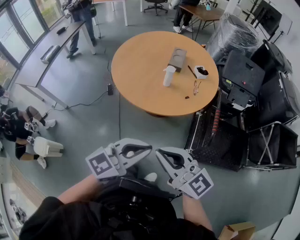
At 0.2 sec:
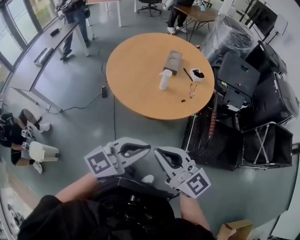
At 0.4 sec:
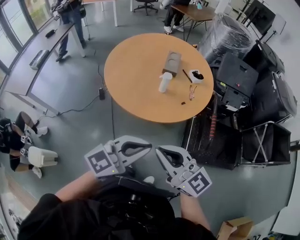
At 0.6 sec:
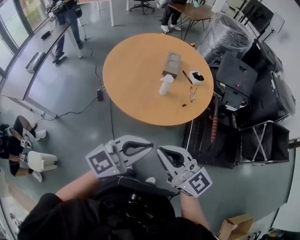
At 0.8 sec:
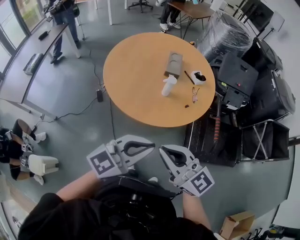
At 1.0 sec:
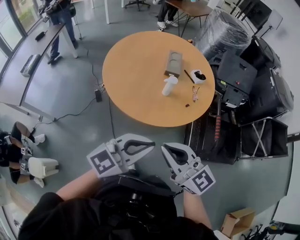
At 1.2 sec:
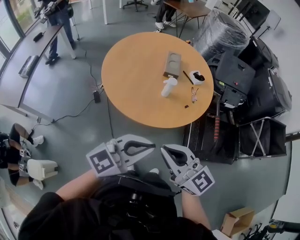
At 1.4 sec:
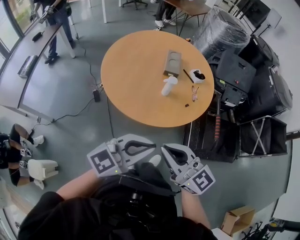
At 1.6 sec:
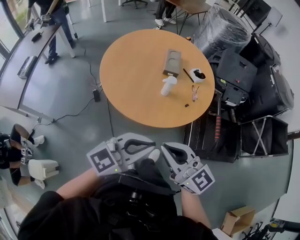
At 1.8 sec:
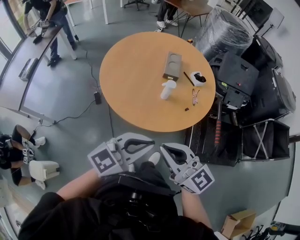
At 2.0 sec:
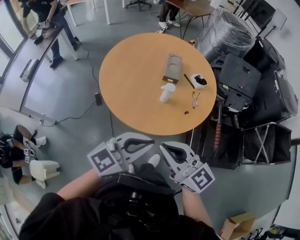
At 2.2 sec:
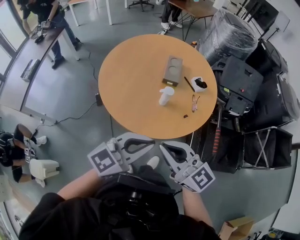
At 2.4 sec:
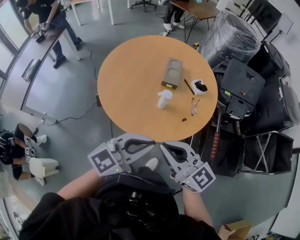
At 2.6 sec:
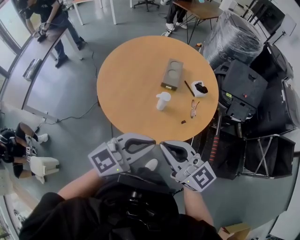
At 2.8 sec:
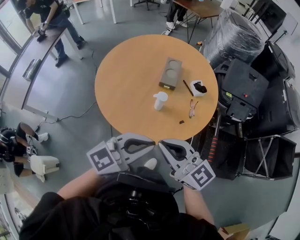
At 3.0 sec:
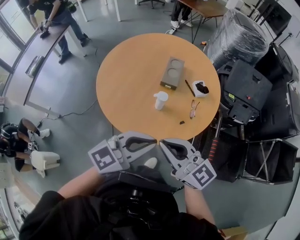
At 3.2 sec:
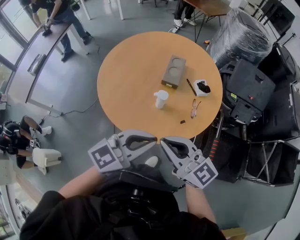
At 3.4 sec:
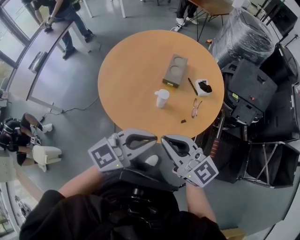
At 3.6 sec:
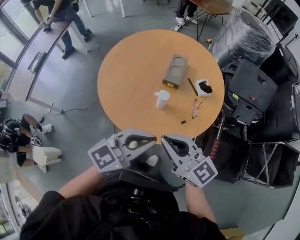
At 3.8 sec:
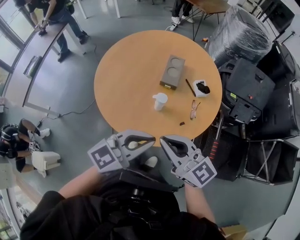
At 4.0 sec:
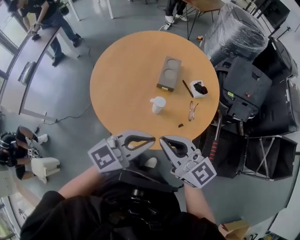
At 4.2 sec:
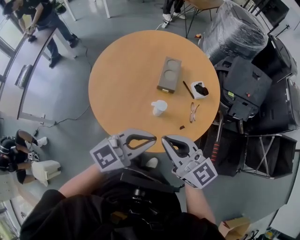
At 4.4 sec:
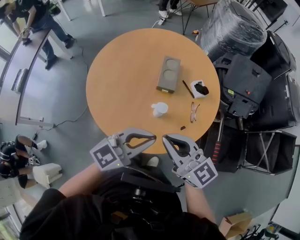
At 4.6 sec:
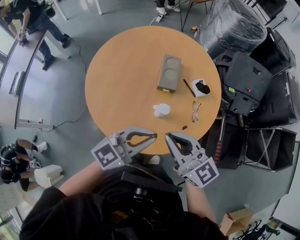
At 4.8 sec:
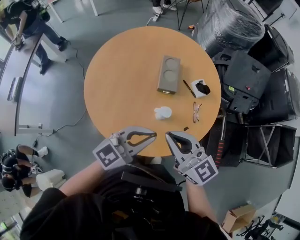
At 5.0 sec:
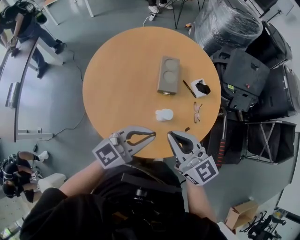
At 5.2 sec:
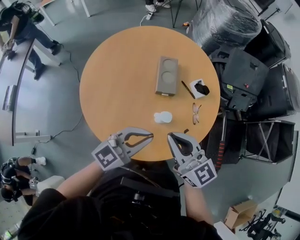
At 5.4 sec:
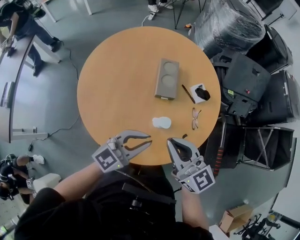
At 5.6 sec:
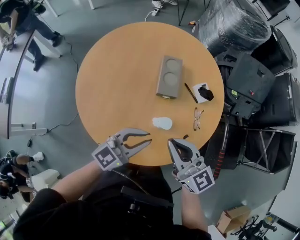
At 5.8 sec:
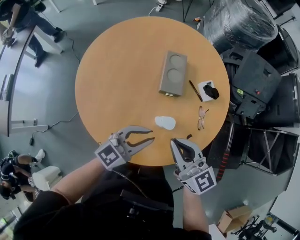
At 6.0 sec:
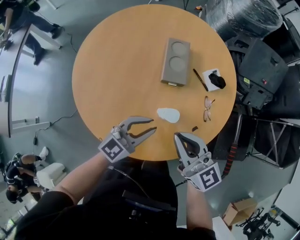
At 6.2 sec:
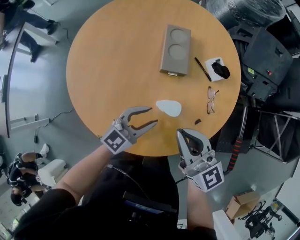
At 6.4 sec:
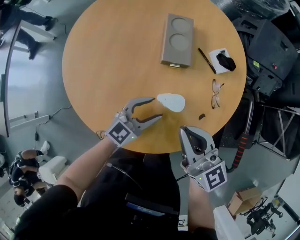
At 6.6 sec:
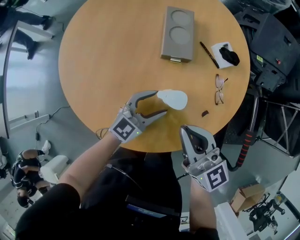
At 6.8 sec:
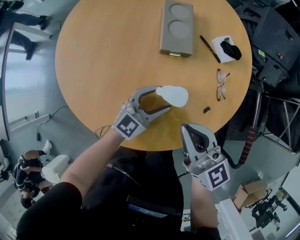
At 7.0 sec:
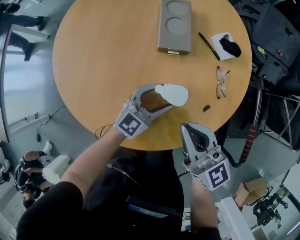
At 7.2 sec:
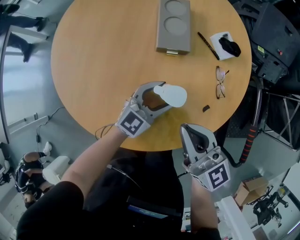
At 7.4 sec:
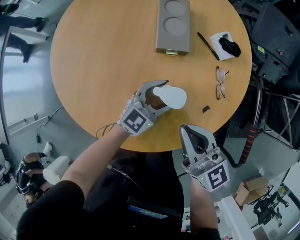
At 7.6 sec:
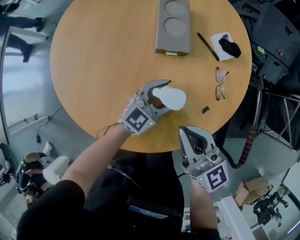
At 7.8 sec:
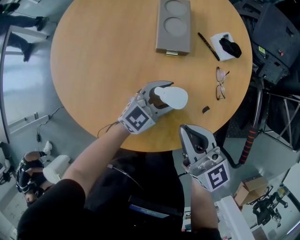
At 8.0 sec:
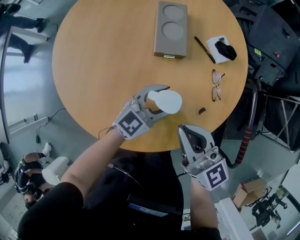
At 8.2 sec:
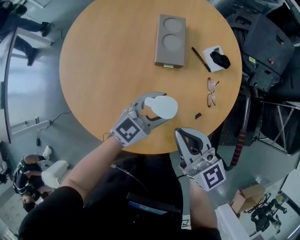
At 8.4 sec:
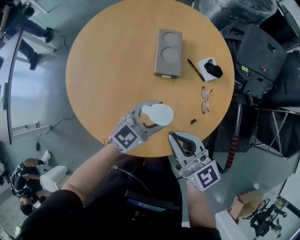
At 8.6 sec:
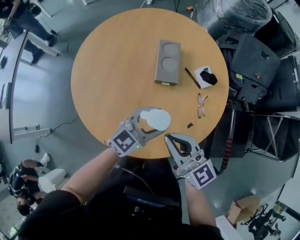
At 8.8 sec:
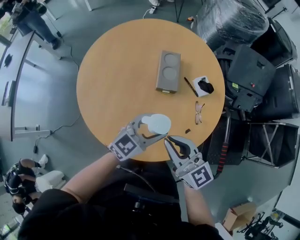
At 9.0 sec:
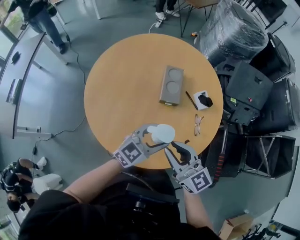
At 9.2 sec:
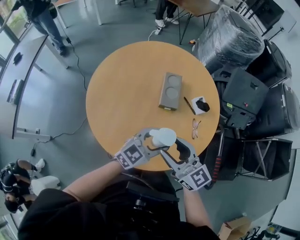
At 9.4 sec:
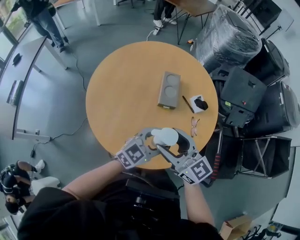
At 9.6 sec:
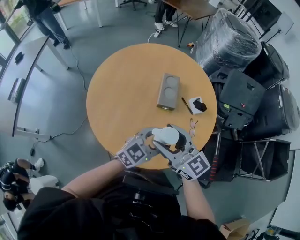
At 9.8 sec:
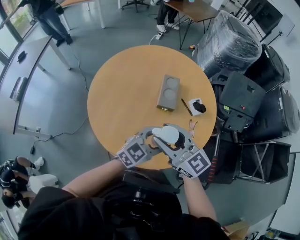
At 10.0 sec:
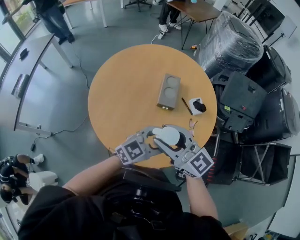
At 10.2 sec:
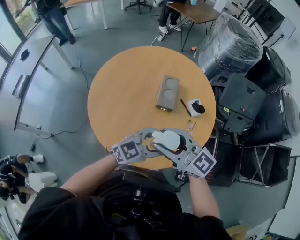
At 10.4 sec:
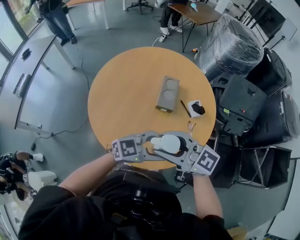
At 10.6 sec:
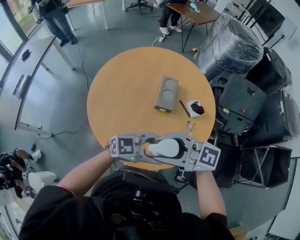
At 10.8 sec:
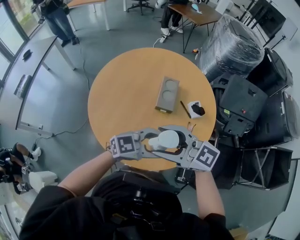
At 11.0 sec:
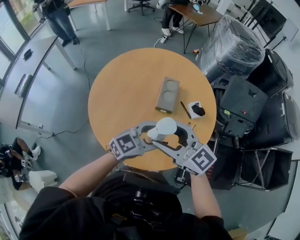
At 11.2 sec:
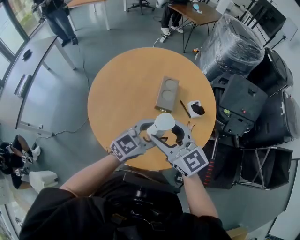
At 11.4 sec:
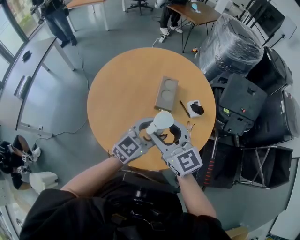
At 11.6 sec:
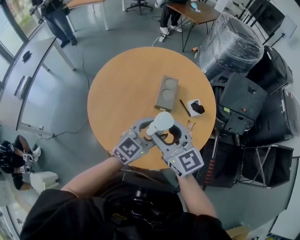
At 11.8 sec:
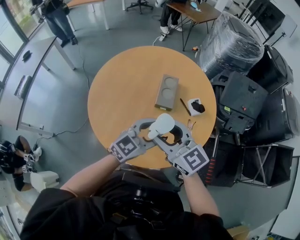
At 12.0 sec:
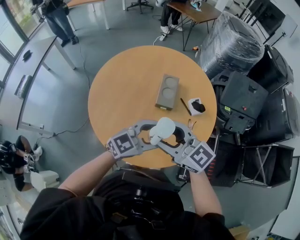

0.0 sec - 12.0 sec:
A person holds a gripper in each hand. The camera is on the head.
0.0 sec - 1.6 sec: Both grippers travel together forward and to the left, roughly 25 cm.
1.6 sec - 3.0 sec: Both grippers move forward and to the right, roughly 25 cm.
3.0 sec - 4.4 sec: Both grippers move forward, about 15 cm.
4.4 sec - 6.0 sec: Both grippers travel together downward and forward, approximately 25 cm.
6.0 sec - 7.6 sec: The left gripper is displaced downward and to the right by about 20 cm, and opens, while the right gripper shifts about 15 cm downward.
7.6 sec - 9.0 sec: Both grippers travel together upward, roughly 25 cm.
9.0 sec - 10.4 sec: The right gripper heads upward, covering roughly 10 cm, swivels approximately 30 degrees, and opens and closes again. Meanwhile the left gripper moves roughly 15 cm, and rotates some 20 degrees.

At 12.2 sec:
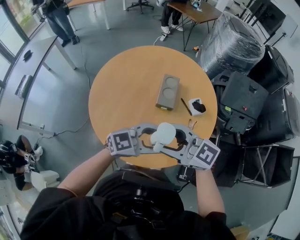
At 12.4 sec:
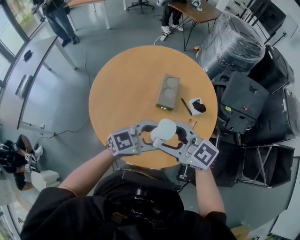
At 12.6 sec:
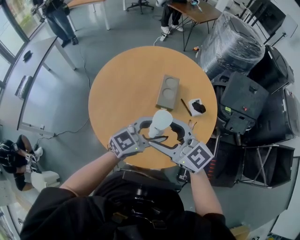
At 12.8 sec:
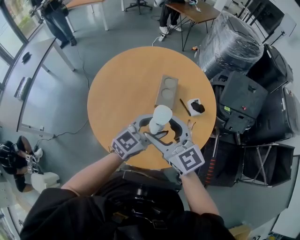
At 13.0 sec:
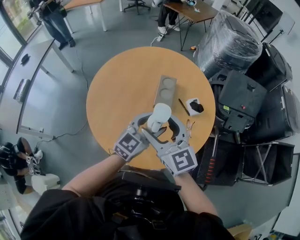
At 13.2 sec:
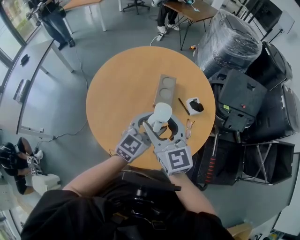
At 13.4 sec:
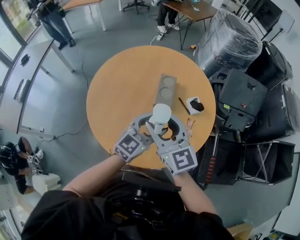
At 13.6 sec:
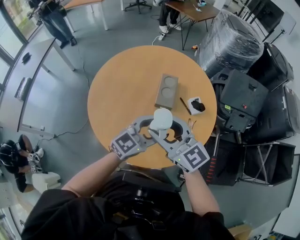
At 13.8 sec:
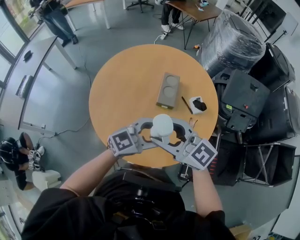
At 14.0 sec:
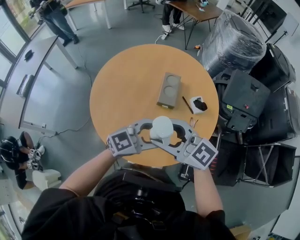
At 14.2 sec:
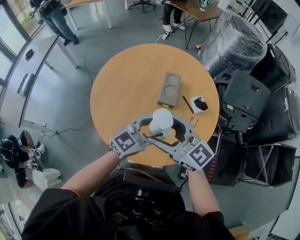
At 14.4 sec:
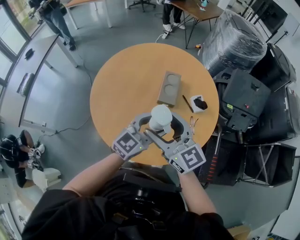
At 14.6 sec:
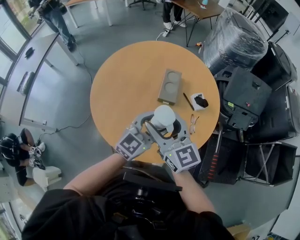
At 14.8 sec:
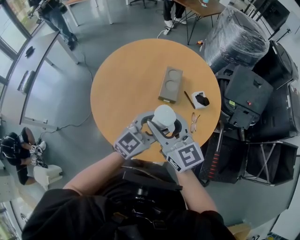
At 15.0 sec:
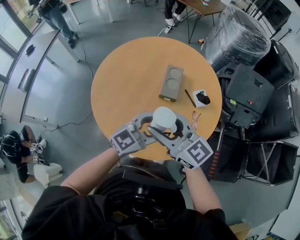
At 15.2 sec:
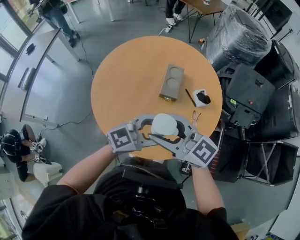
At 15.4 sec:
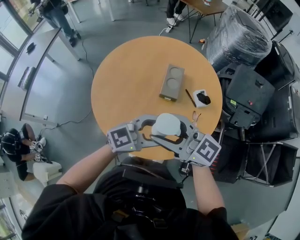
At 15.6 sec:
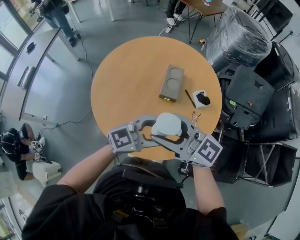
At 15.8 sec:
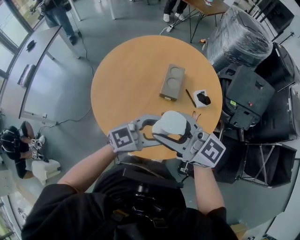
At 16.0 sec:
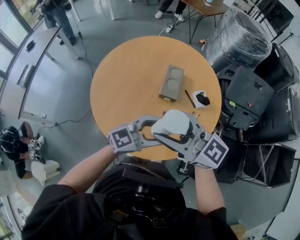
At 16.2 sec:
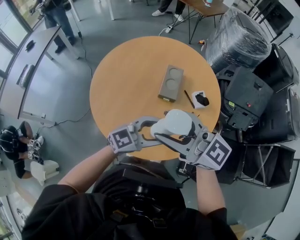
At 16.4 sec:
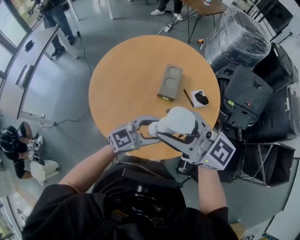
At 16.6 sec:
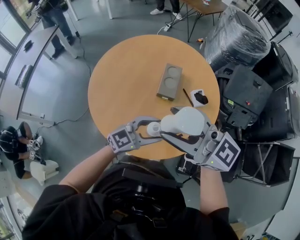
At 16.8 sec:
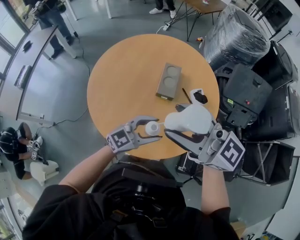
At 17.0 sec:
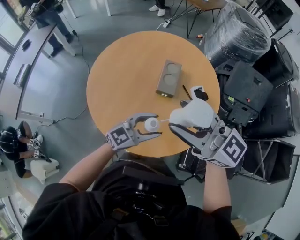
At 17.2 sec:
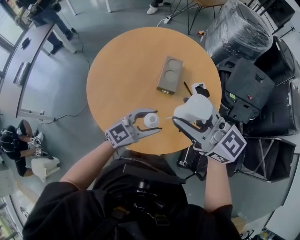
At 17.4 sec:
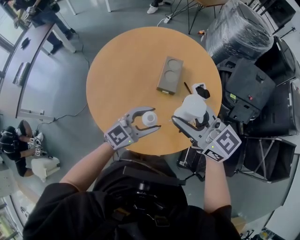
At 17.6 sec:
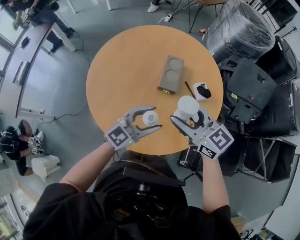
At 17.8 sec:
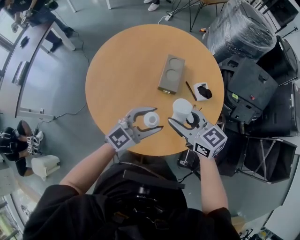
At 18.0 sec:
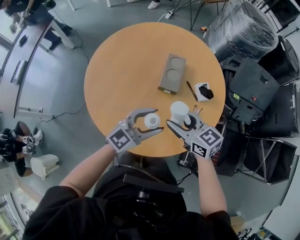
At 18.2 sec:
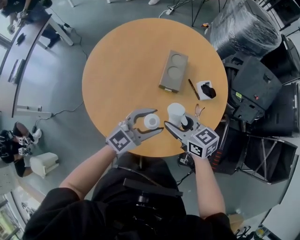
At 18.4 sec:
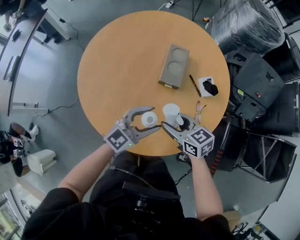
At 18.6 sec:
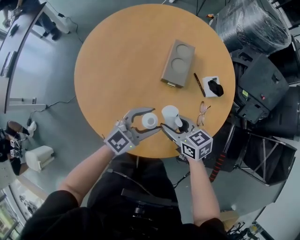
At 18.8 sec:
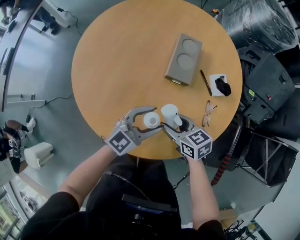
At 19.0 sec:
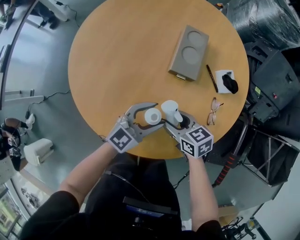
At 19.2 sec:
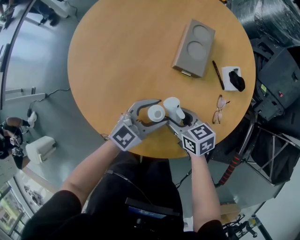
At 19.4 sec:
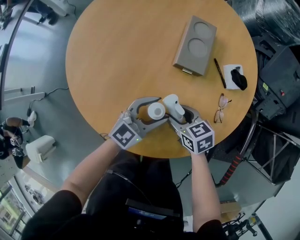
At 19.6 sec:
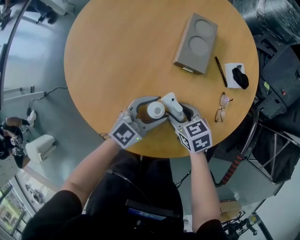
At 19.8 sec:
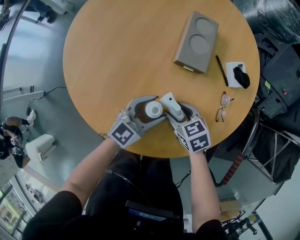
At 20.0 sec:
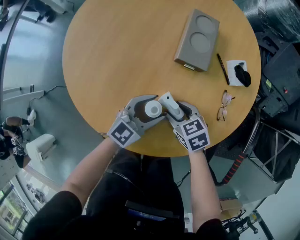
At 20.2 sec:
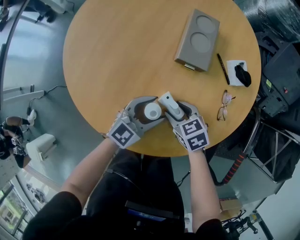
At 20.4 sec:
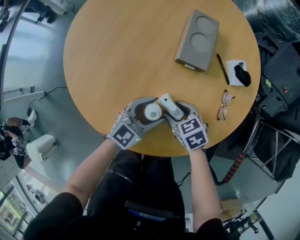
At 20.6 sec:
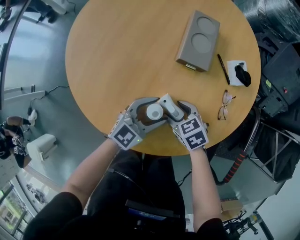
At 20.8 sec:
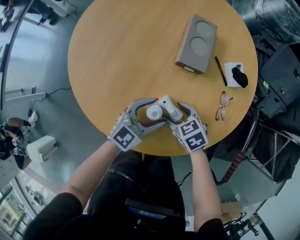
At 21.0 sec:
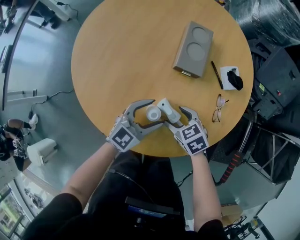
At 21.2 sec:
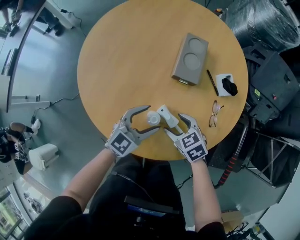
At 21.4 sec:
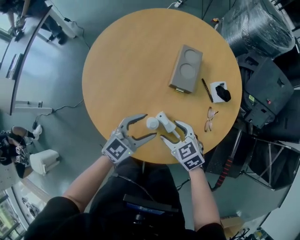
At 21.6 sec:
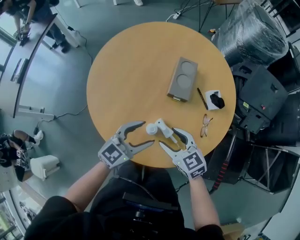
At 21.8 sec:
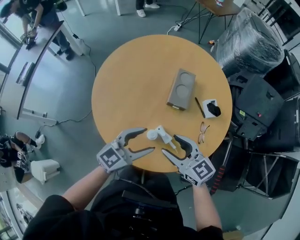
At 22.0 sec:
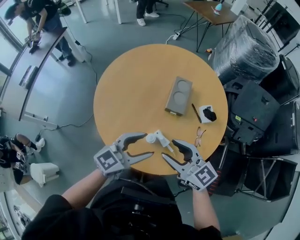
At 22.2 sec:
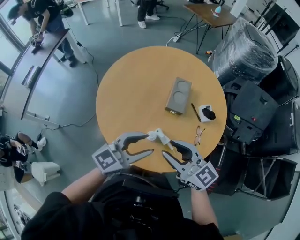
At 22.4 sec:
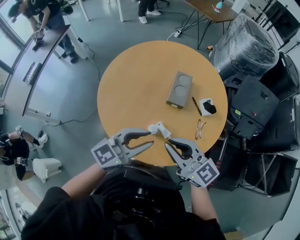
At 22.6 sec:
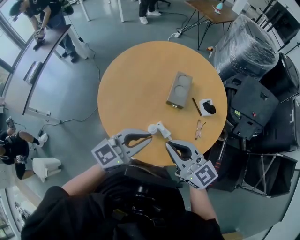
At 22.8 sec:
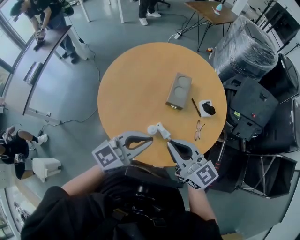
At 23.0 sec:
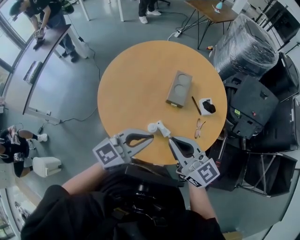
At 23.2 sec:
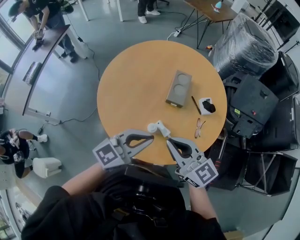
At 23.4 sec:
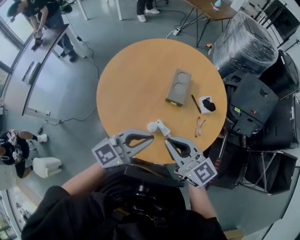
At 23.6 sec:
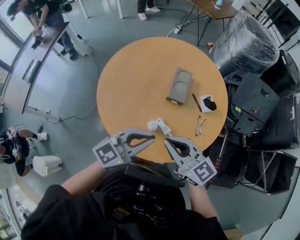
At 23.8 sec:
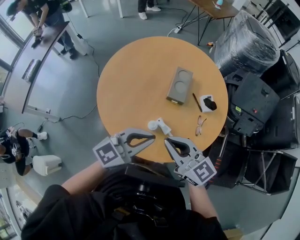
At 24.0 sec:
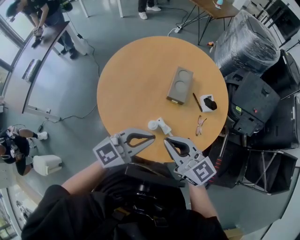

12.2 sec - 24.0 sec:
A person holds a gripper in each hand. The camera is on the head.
12.2 sec - 13.6 sec: The right gripper swivels some 20 degrees. The left gripper rotates roughly 20 degrees.
13.6 sec - 15.2 sec: The grippers make only small movements.
15.2 sec - 16.6 sec: The left gripper is displaced downward by approximately 5 cm. The right gripper heads upward, covering roughly 10 cm.
16.6 sec - 18.2 sec: The left gripper ends up some 10 cm from where it was; the right gripper moves downward, about 30 cm, and points its fingers about 30 degrees further downward.
18.2 sec - 19.6 sec: The two grippers go approximately 25 cm downward. The right gripper turns by about 20 degrees.
19.6 sec - 21.0 sec: The grippers make only small movements.
21.0 sec - 22.6 sec: The grippers both shift upward by about 40 cm. The right gripper tips its fingers upward by approximately 60 degrees, and closes its fingers; the left gripper closes its fingers.
22.6 sec - 24.0 sec: There are only small adjustments of the grippers.
